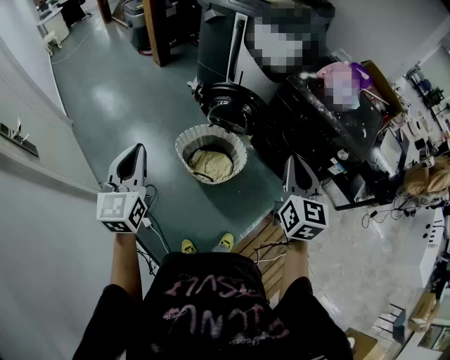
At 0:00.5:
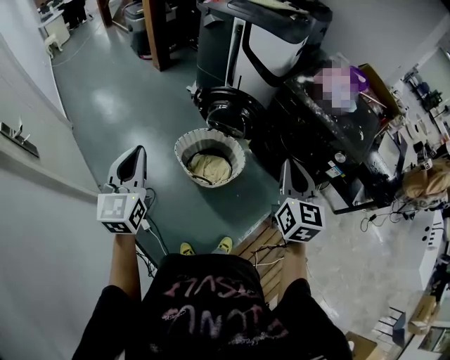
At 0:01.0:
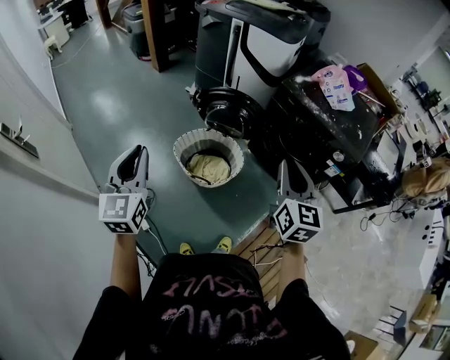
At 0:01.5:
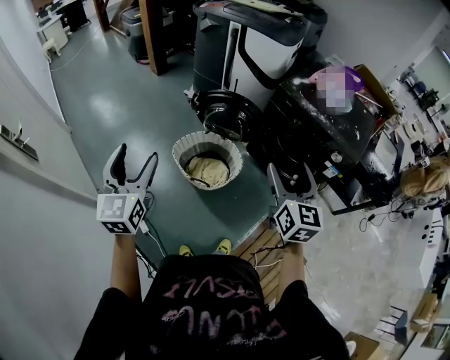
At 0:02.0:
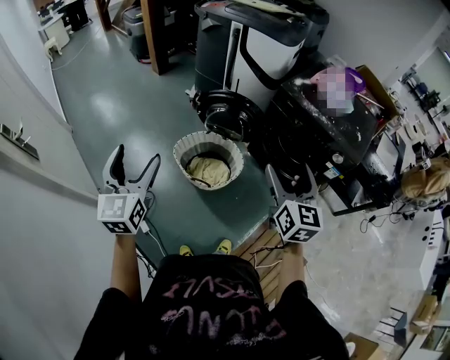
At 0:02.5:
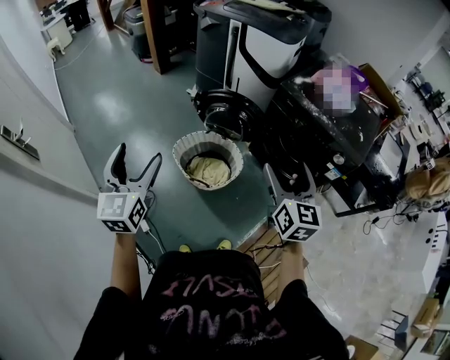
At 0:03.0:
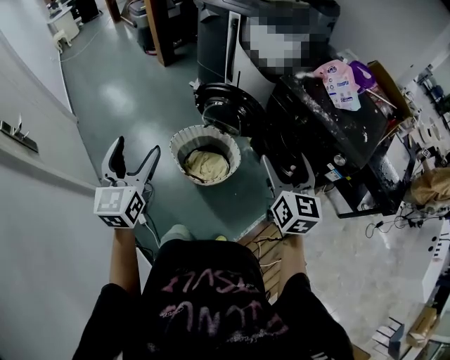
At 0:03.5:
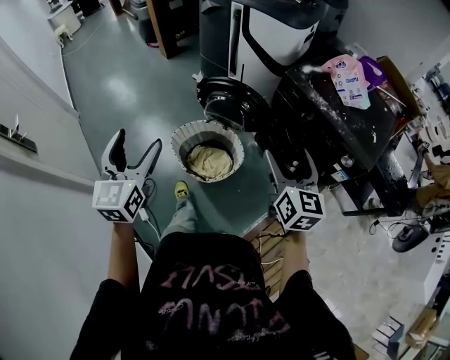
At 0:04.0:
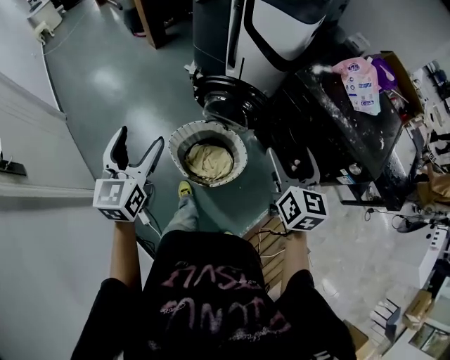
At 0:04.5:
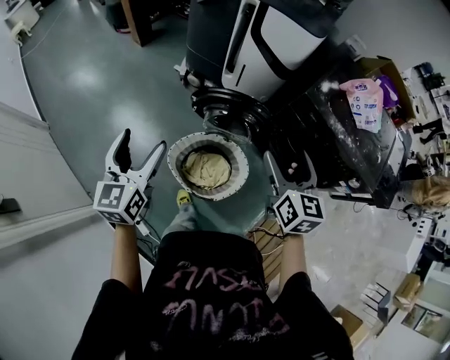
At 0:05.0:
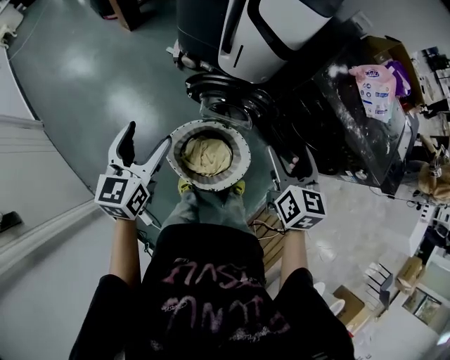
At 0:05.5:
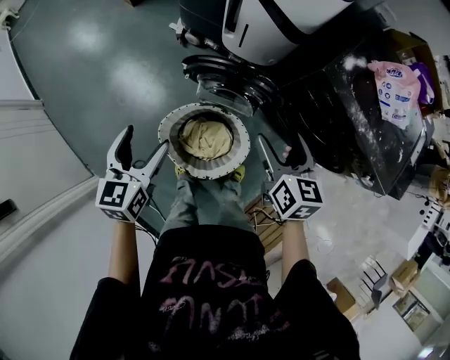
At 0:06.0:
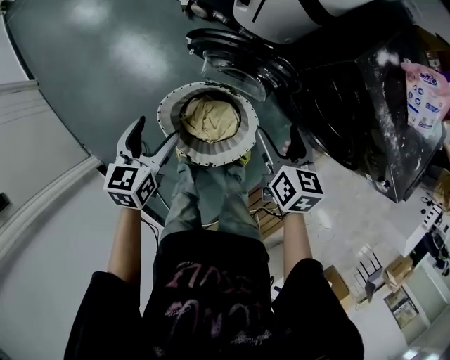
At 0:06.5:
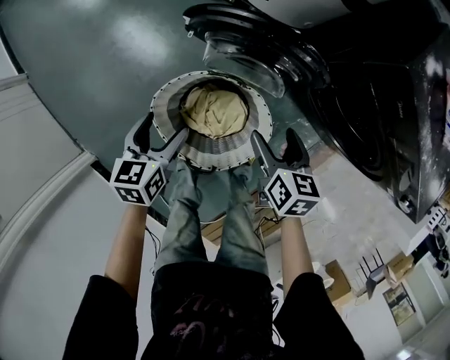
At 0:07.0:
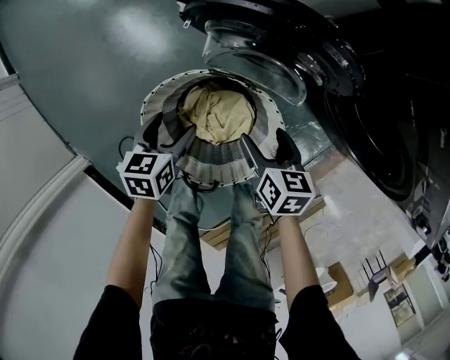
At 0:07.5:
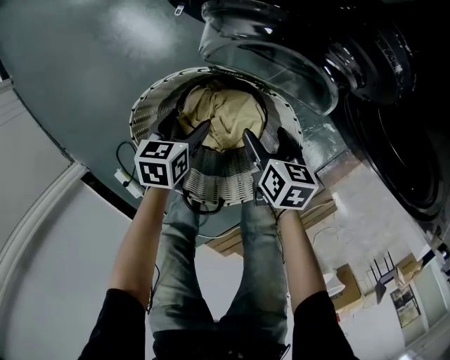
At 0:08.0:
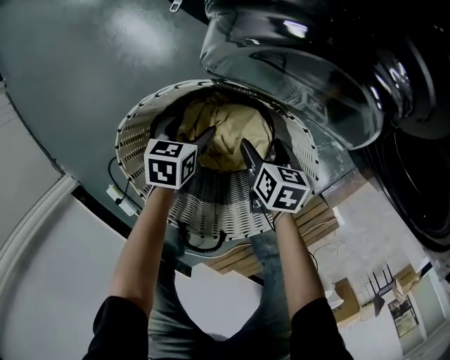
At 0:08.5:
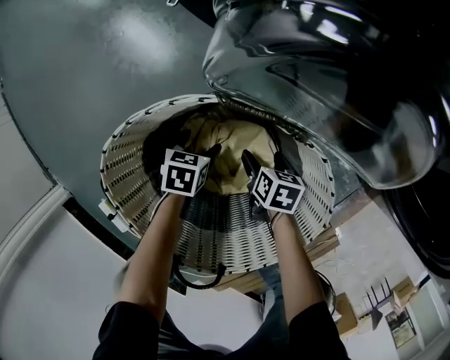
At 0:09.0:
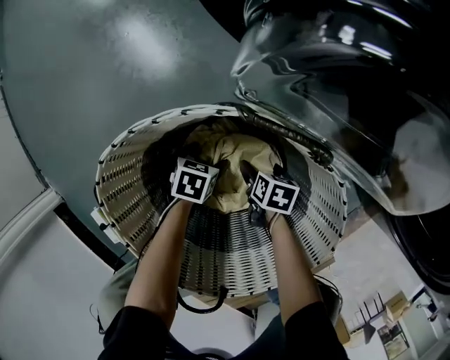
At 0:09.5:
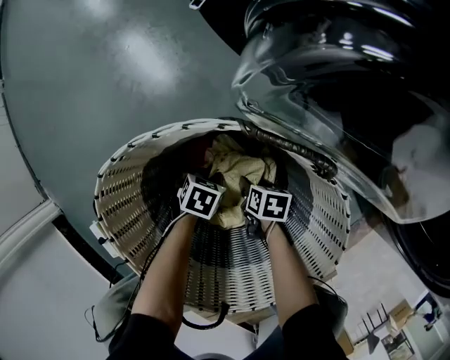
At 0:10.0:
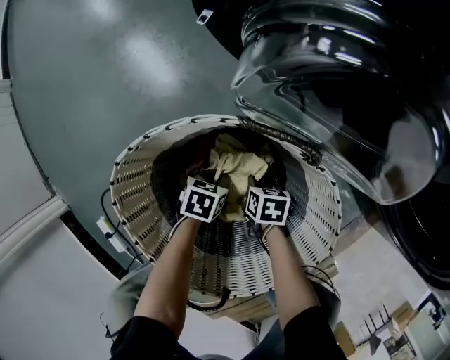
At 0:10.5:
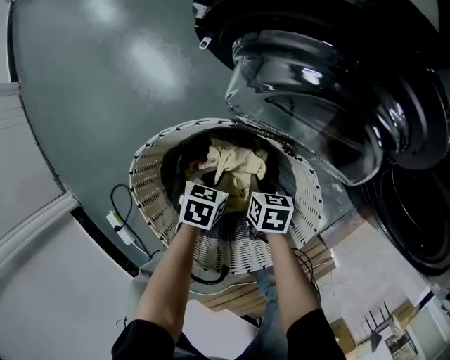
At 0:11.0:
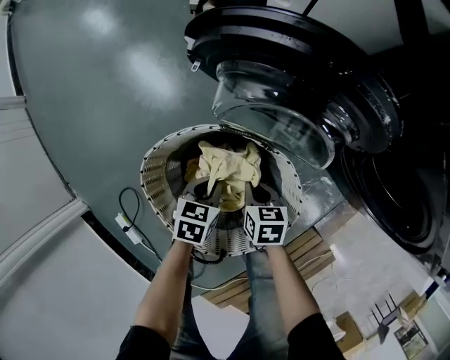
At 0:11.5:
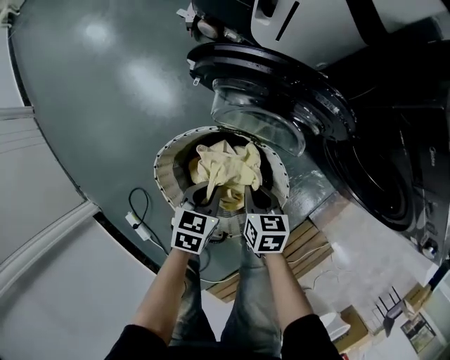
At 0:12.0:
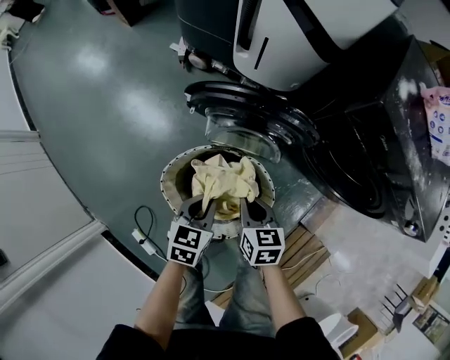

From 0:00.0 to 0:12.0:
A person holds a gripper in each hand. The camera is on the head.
From 0:00.0 to 0:02.0: The left gripper opens up, while the right gripper opens up.
From 0:02.0 to 0:04.0: Both grippers move forward, approximately 20 cm.
From 0:04.0 to 0:06.0: Both grippers move downward and forward, roughly 30 cm. The left gripper rotates roughly 30 degrees. The right gripper turns by some 30 degrees.
From 0:06.0 to 0:08.0: The grippers both shift downward by about 50 cm. The right gripper rotates roughly 30 degrees; the left gripper turns by roughly 30 degrees.
From 0:08.0 to 0:10.0: The left gripper goes some 15 cm downward and backward, and closes its fingers. The right gripper shifts about 15 cm downward, and closes its fingers.
From 0:10.0 to 0:12.0: Both grippers move upward, roughly 50 cm. The right gripper swivels some 30 degrees. The left gripper turns by roughly 30 degrees.

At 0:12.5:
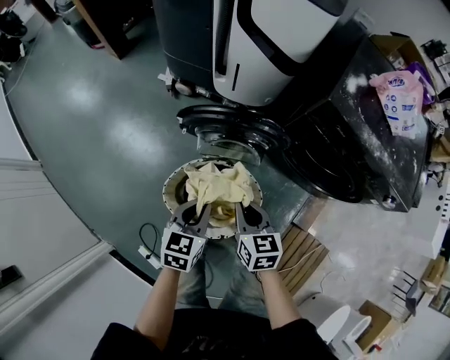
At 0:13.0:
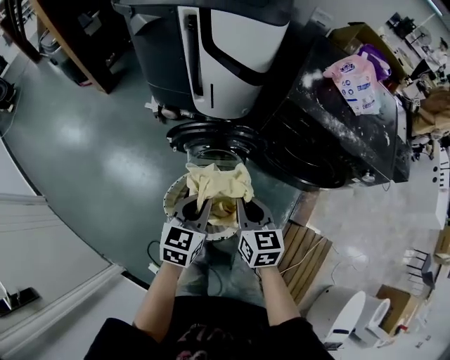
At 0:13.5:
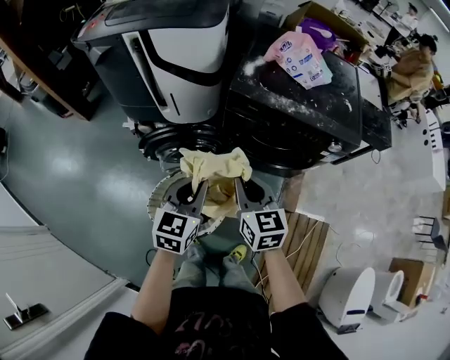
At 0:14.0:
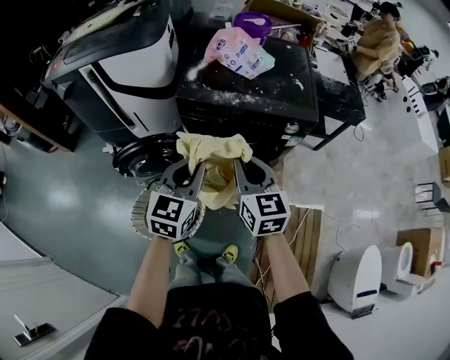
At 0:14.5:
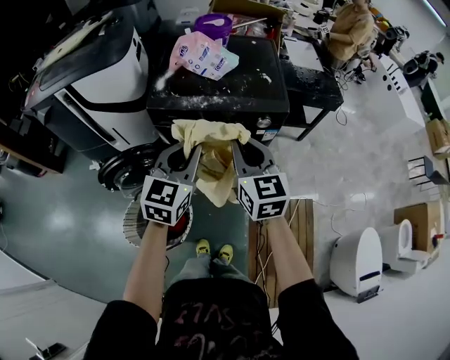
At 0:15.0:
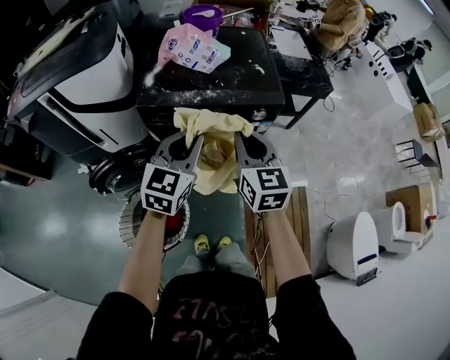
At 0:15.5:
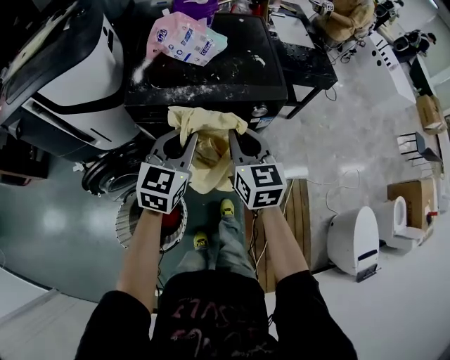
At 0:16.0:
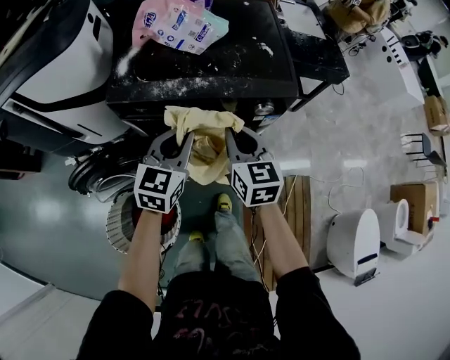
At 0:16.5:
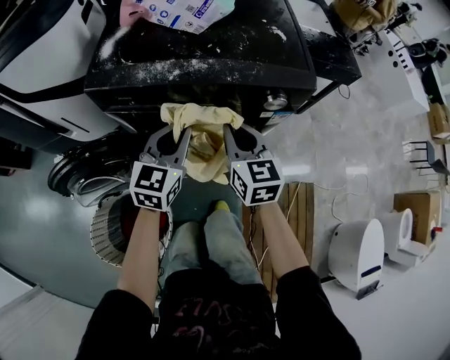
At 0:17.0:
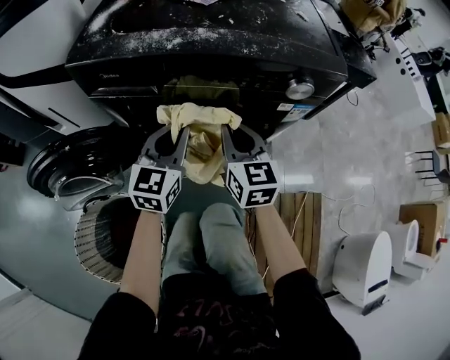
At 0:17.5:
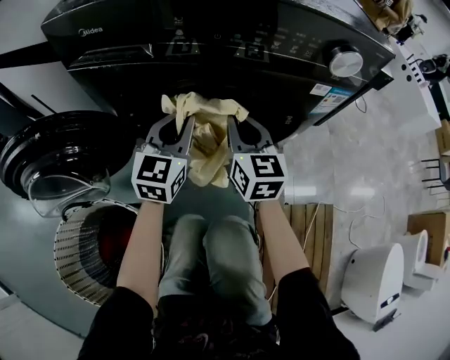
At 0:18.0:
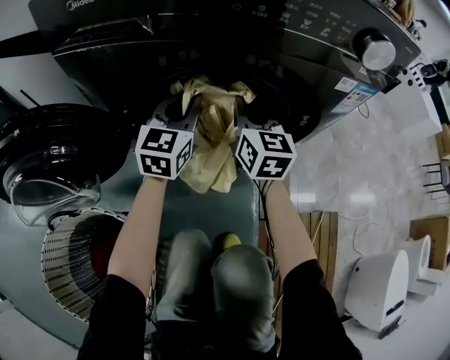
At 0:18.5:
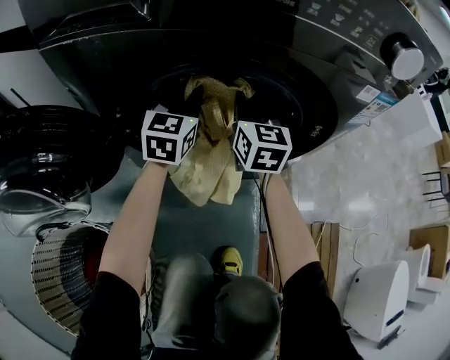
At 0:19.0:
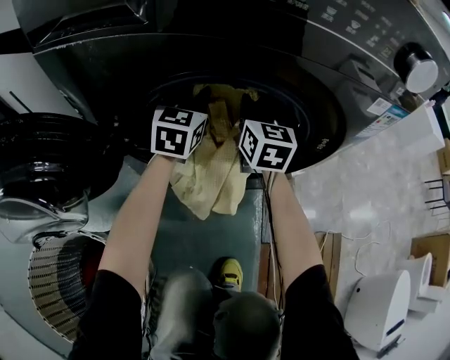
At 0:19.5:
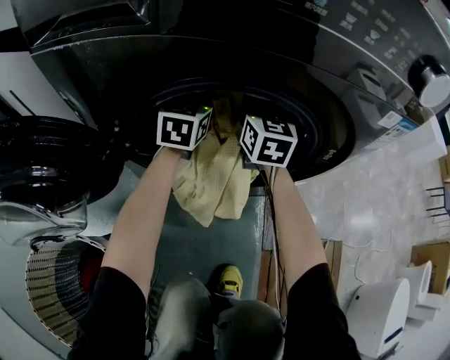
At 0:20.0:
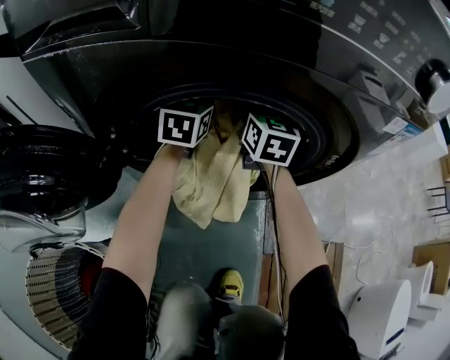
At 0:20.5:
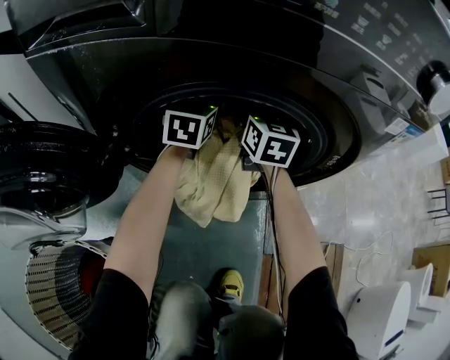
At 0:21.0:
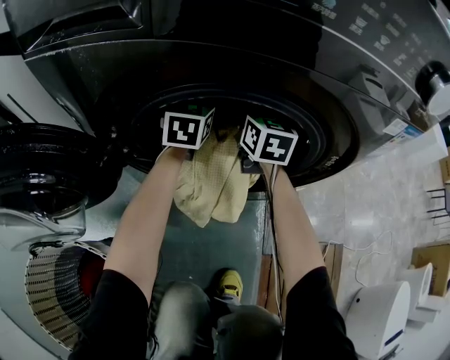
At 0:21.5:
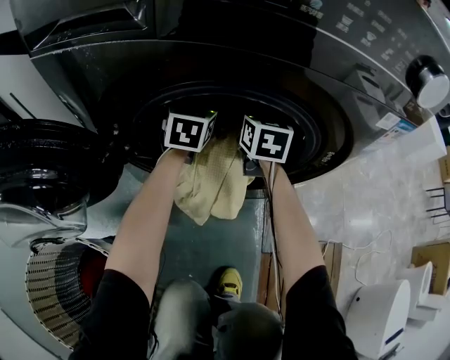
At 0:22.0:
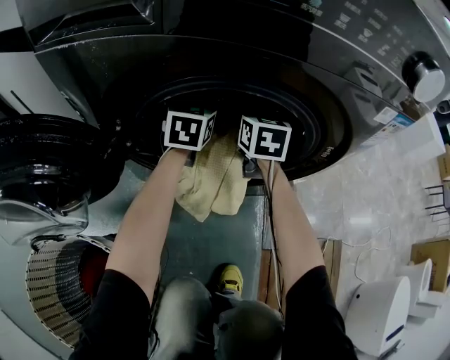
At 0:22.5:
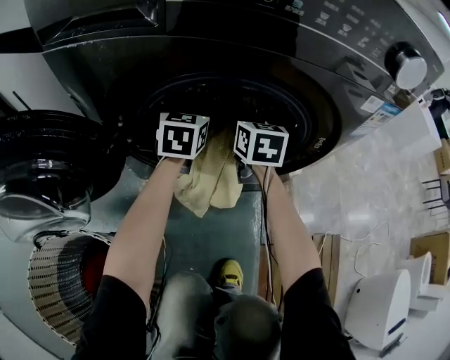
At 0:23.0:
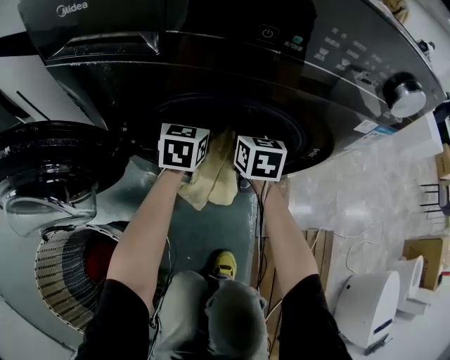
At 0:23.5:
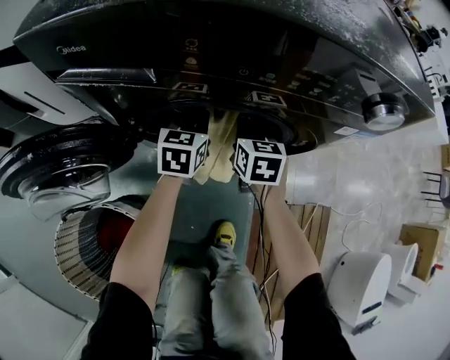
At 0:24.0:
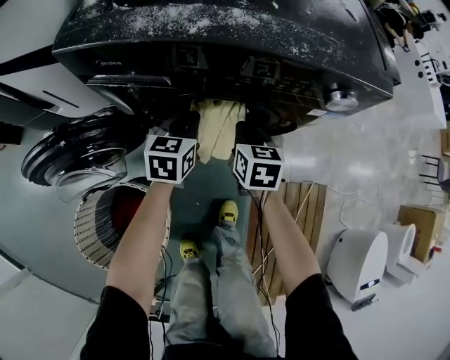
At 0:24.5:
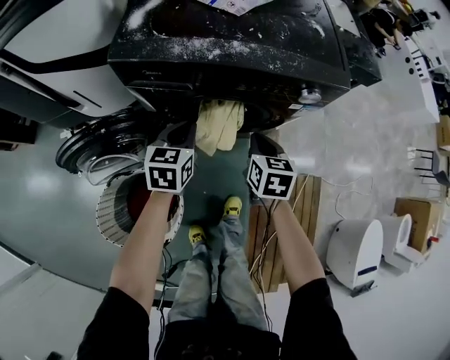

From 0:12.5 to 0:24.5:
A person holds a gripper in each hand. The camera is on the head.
From 0:12.5 to 0:14.5: The left gripper ends up approximately 50 cm from where it was, and changes its angle by about 50 degrees, while the right gripper shifts by roughly 50 cm, and swivels some 40 degrees.
From 0:14.5 to 0:16.5: Both grippers travel together downward and forward, some 30 cm.
From 0:16.5 to 0:18.5: Both grippers move downward and forward, roughly 35 cm.
From 0:18.5 to 0:20.5: Both grippers move forward, some 10 cm. The left gripper opens its fingers. Meanwhile the right gripper opens.
From 0:20.5 to 0:22.5: Both grippers move backward, approximately 5 cm. The right gripper closes, while the left gripper closes up.
From 0:22.5 to 0:24.5: Both grippers travel together upward and backward, some 35 cm.

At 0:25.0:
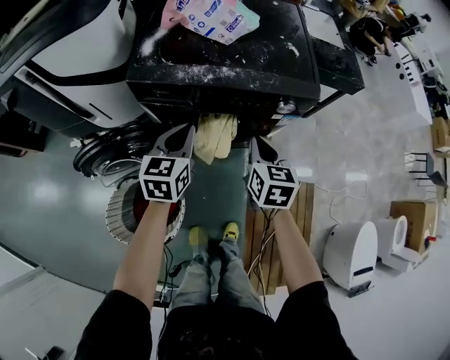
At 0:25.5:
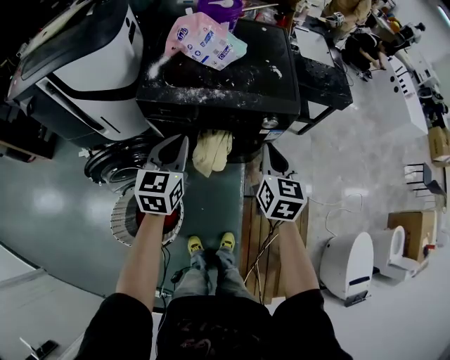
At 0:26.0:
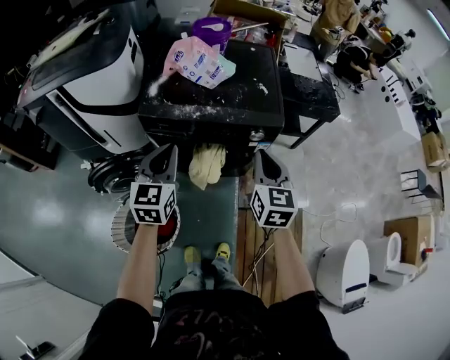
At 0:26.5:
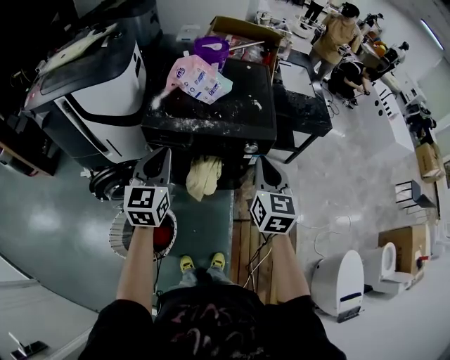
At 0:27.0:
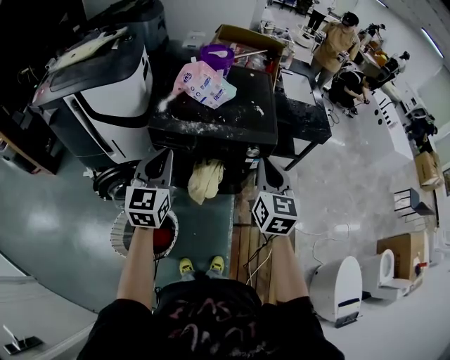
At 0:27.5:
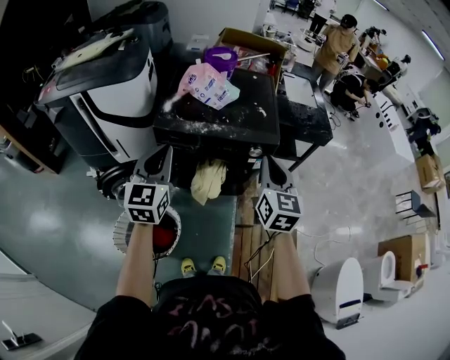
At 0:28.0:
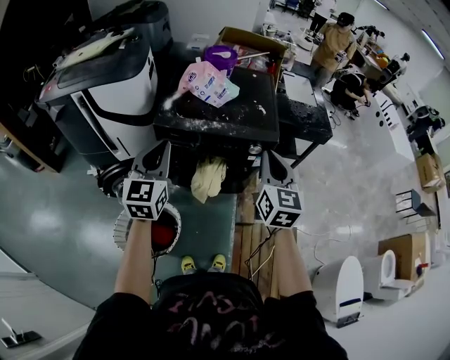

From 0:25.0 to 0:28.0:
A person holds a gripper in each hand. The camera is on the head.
From 0:25.0 to 0:26.5: Both grippers move upward, about 25 cm. The right gripper turns by some 20 degrees.
From 0:26.5 to 0:28.0: The left gripper changes place by about 5 cm. The right gripper travels upward by approximately 5 cm.
